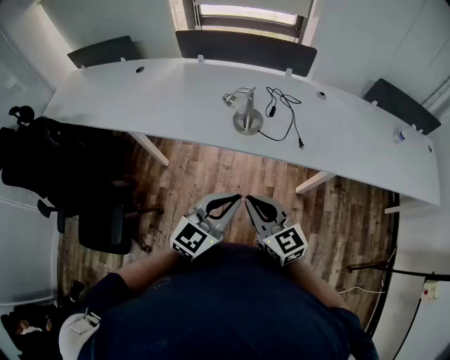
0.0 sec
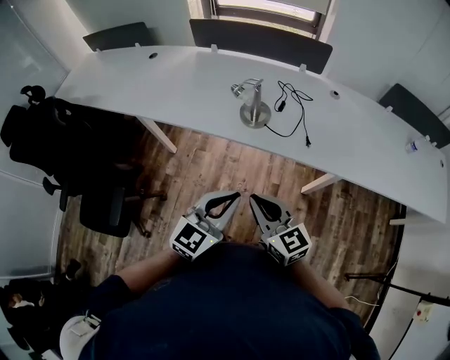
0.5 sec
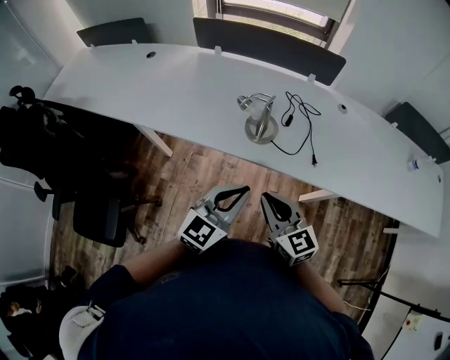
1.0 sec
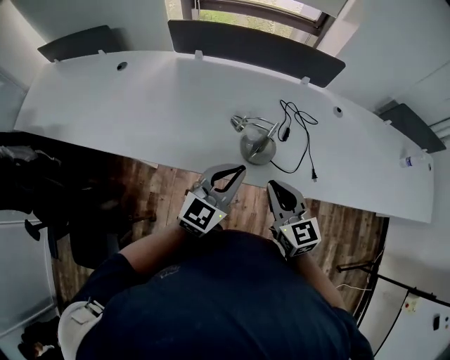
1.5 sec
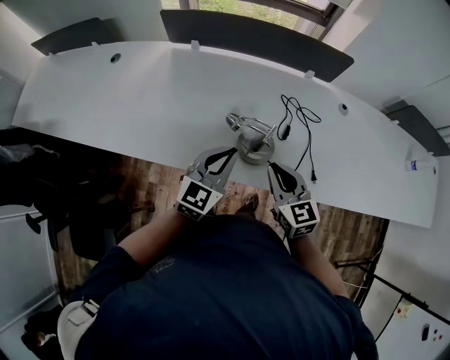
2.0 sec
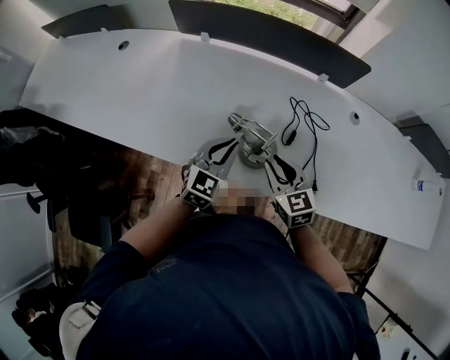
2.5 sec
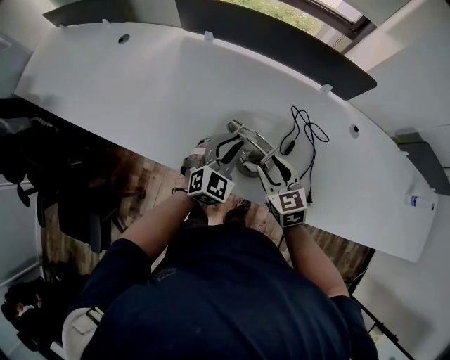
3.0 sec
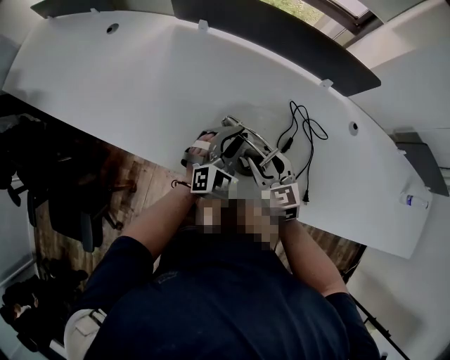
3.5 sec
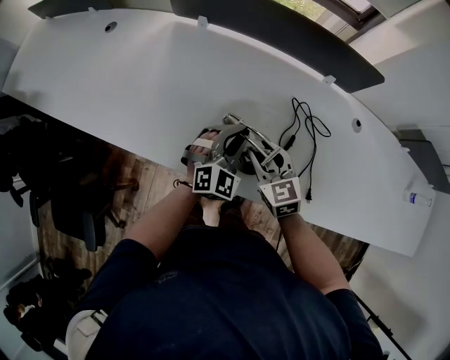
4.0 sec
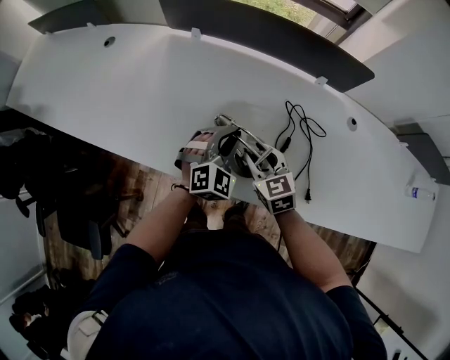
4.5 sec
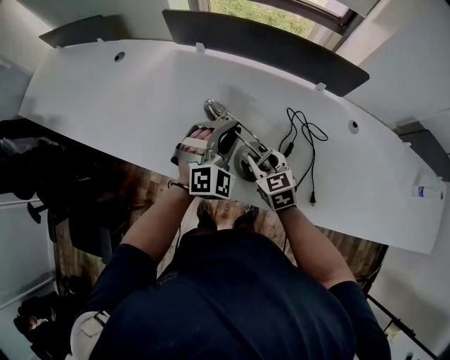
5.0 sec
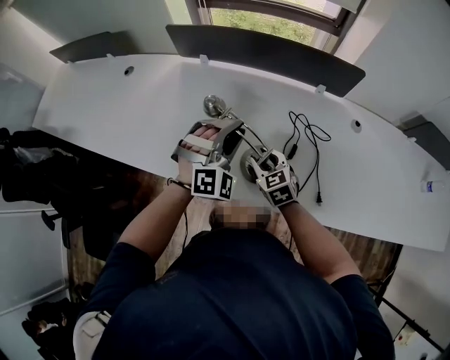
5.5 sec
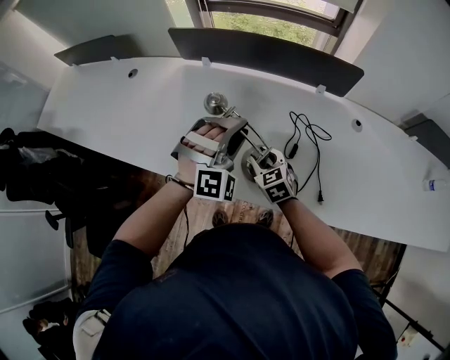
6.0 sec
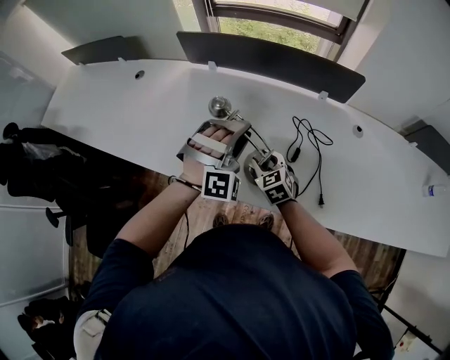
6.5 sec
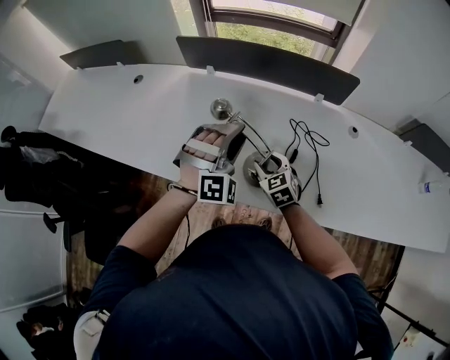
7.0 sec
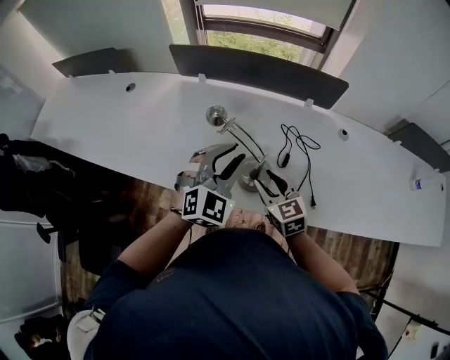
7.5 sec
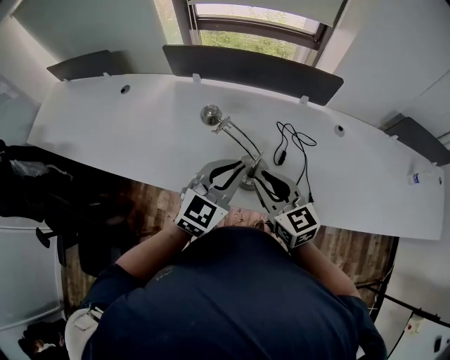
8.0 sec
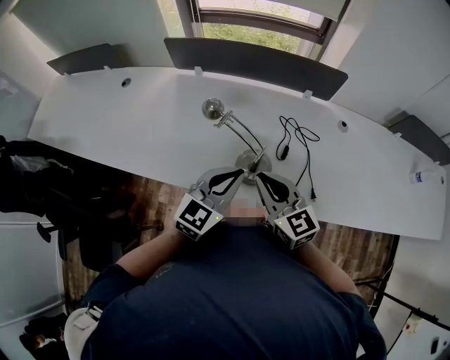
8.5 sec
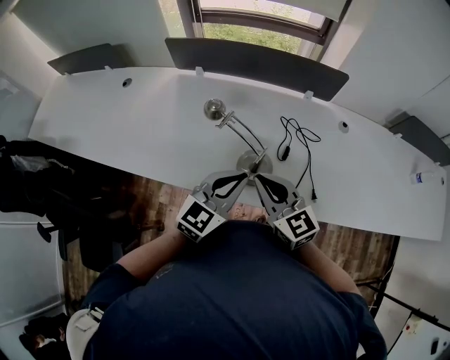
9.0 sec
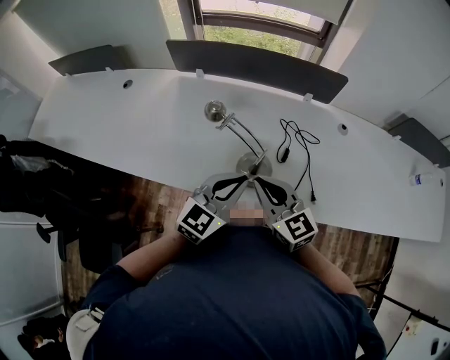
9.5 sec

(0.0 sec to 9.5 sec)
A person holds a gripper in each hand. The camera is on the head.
0.0 sec - 2.0 sec: Both grippers move forward, approximately 35 cm.
2.0 sec - 4.0 sec: Both grippers travel together forward and downward, some 15 cm. The right gripper opens its fingers; the left gripper rotates about 30 degrees.
4.0 sec - 5.5 sec: The left gripper heads upward, covering roughly 10 cm, and swivels approximately 30 degrees.
5.5 sec - 7.5 sec: The left gripper shifts roughly 10 cm backward and upward, and changes its angle by roughly 30 degrees, while the right gripper is displaced upward and backward by roughly 10 cm.
7.5 sec - 9.5 sec: The left gripper goes approximately 5 cm backward, rotates roughly 30 degrees, and closes; the right gripper heads upward, covering roughly 10 cm, and closes.

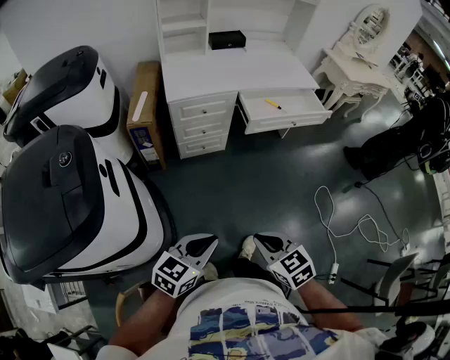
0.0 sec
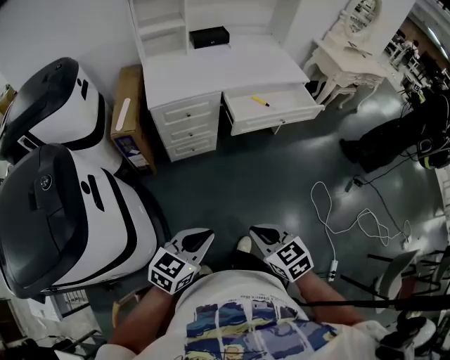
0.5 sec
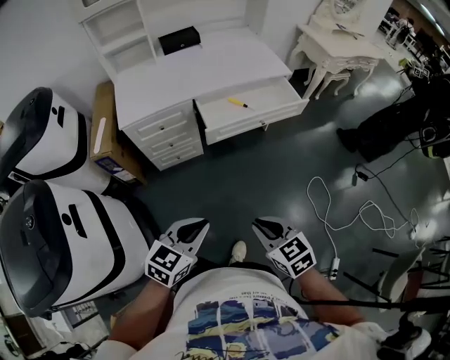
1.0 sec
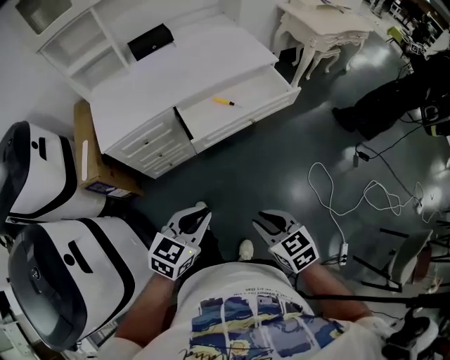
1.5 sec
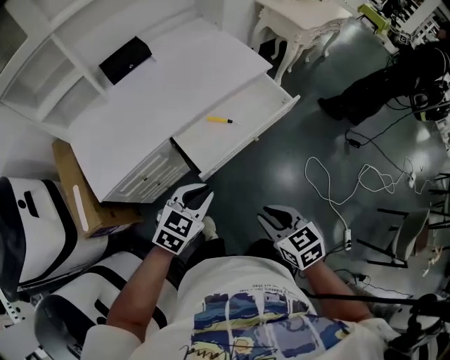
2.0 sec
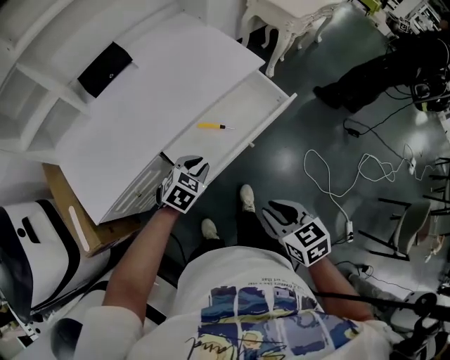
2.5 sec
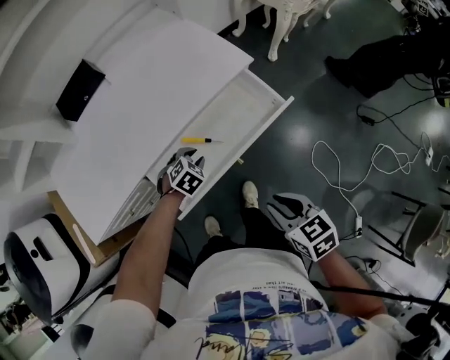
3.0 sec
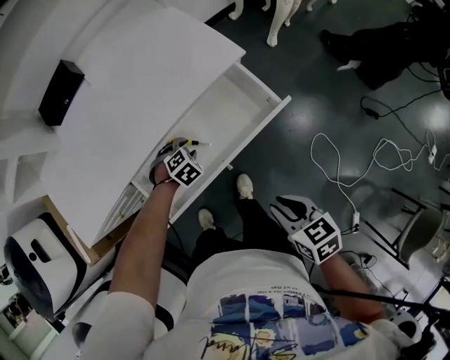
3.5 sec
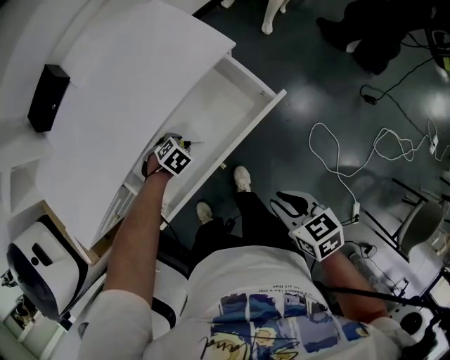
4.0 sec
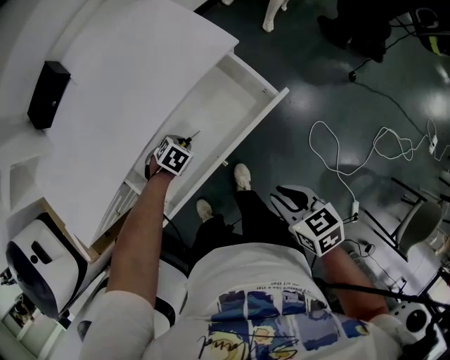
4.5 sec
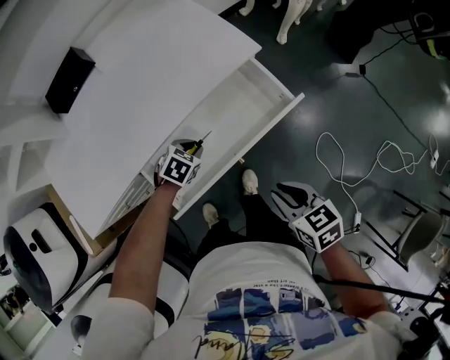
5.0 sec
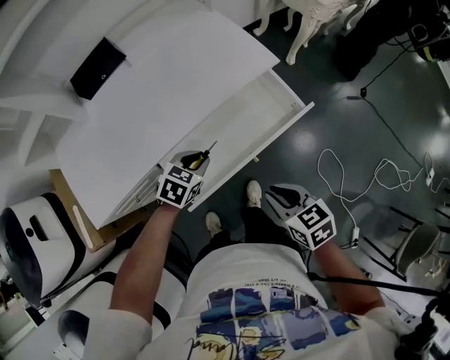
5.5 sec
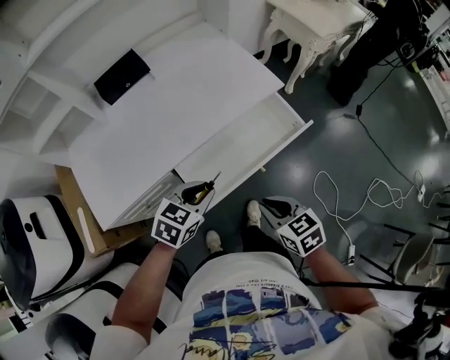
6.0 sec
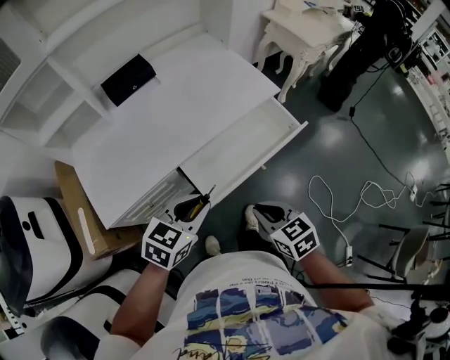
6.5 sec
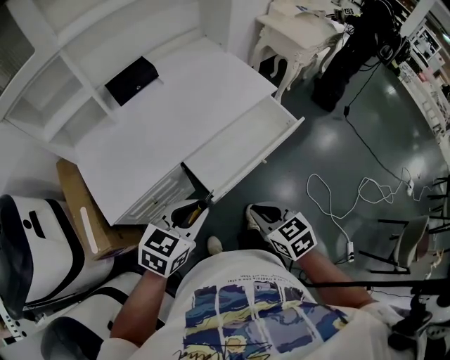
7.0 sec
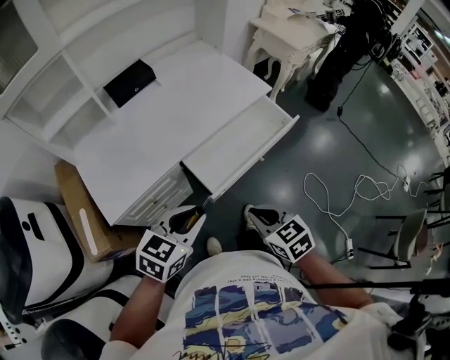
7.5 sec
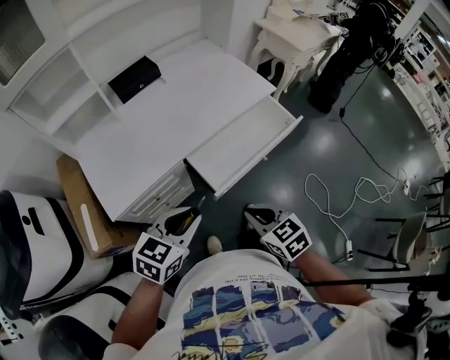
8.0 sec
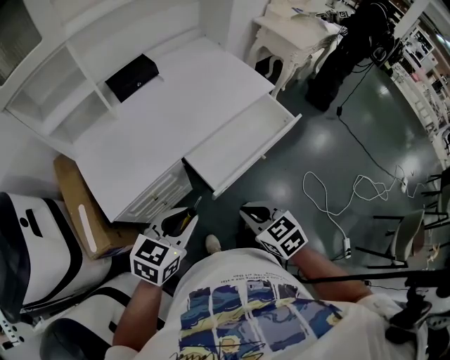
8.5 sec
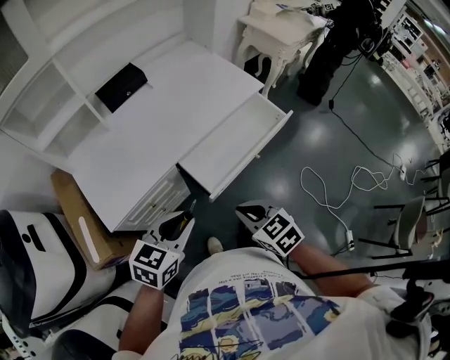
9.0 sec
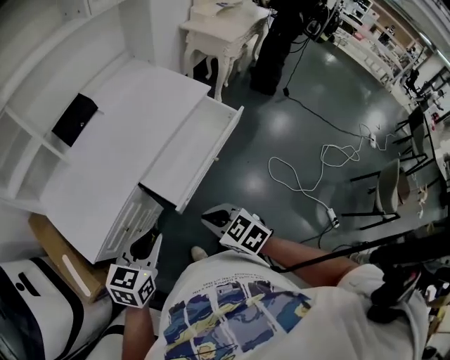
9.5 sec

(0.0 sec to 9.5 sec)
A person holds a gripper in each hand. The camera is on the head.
0.0 sec - 2.0 sec: The two grippers travel together, forward, approximately 50 cm. The left gripper rotates approximately 30 degrees. The right gripper changes its angle by some 30 degrees.
2.0 sec - 4.0 sec: The left gripper moves downward, some 30 cm, points its fingers approximately 50 degrees further downward, and opens its fingers. Meanwhile the right gripper changes place by about 30 cm.
4.0 sec - 5.5 sec: The left gripper moves upward, approximately 20 cm, and tilts its fingers about 30 degrees upward. The right gripper changes place by roughly 10 cm.
5.5 sec - 7.5 sec: The right gripper heads to the left, backward and upward, covering some 20 cm. Meanwhile the left gripper is displaced backward, upward and to the left by roughly 30 cm, and changes its angle by roughly 20 degrees.
7.5 sec - 9.5 sec: There are only small adjustments of the grippers.

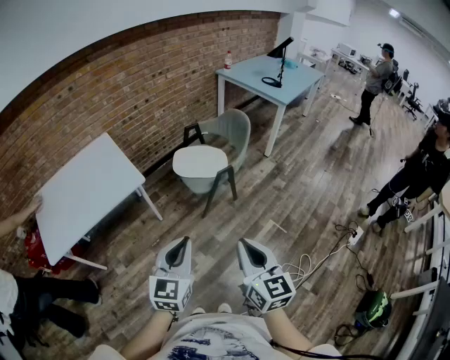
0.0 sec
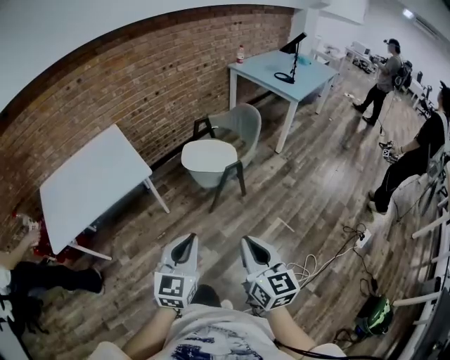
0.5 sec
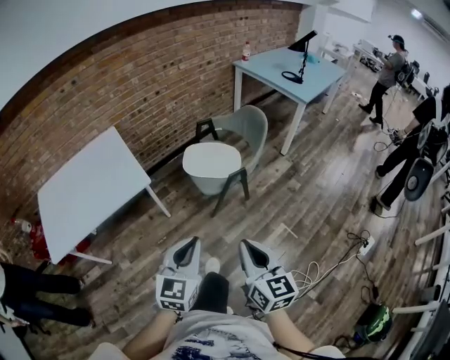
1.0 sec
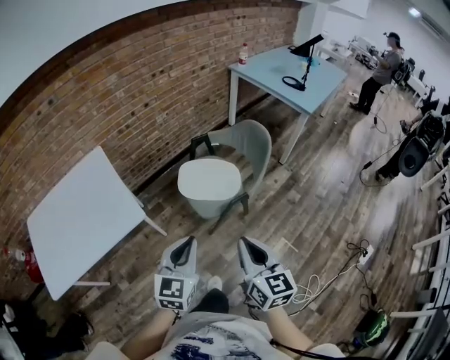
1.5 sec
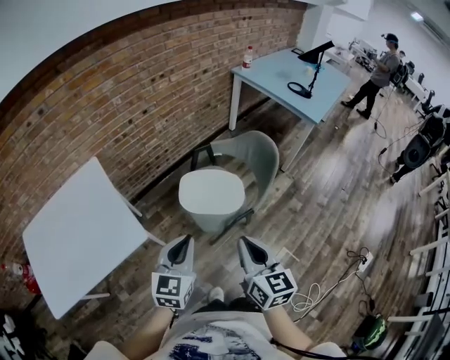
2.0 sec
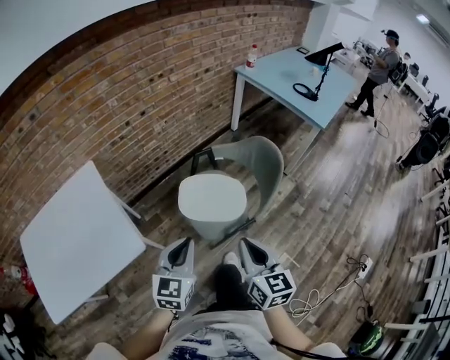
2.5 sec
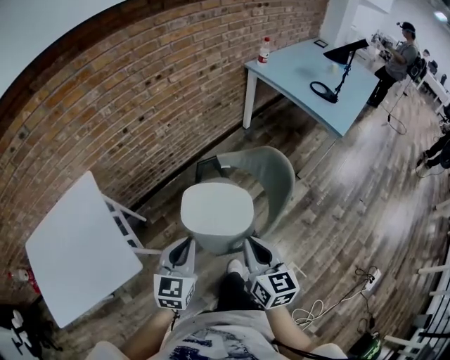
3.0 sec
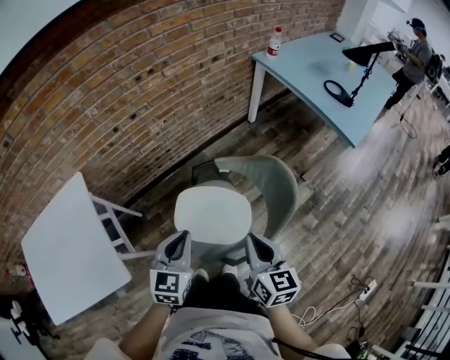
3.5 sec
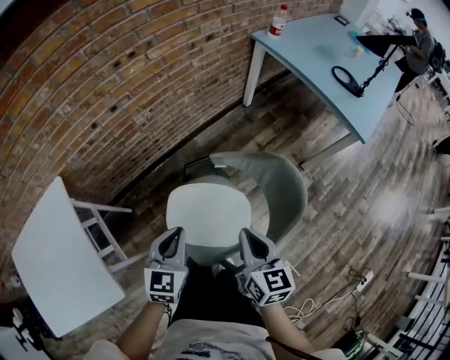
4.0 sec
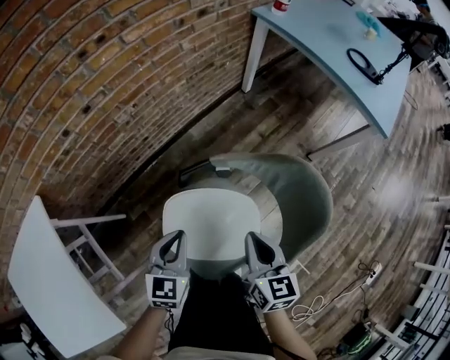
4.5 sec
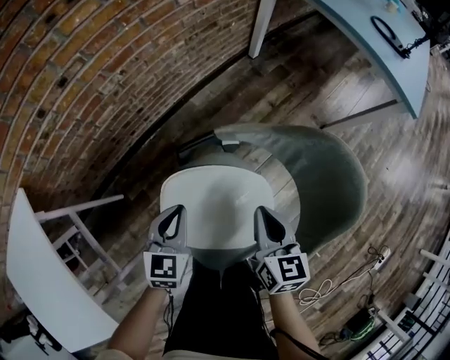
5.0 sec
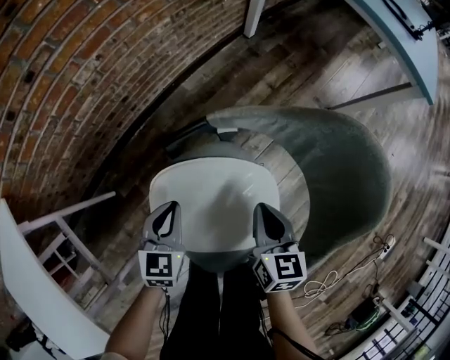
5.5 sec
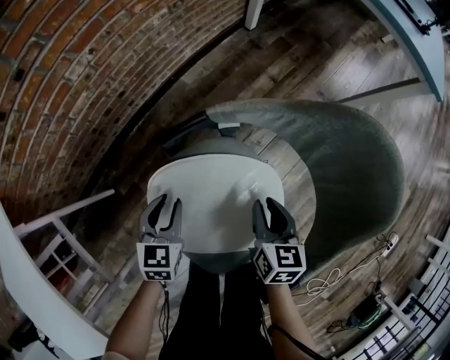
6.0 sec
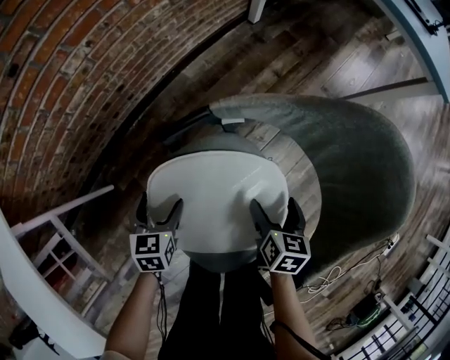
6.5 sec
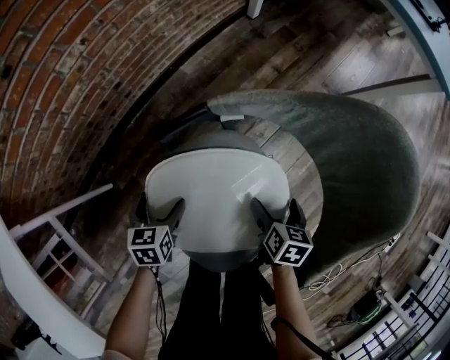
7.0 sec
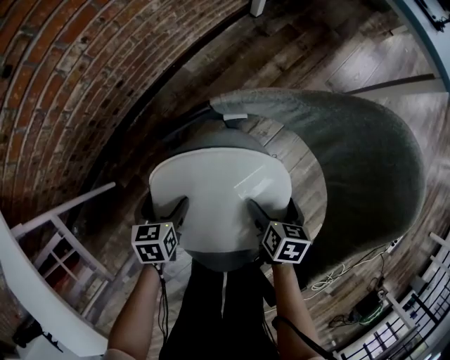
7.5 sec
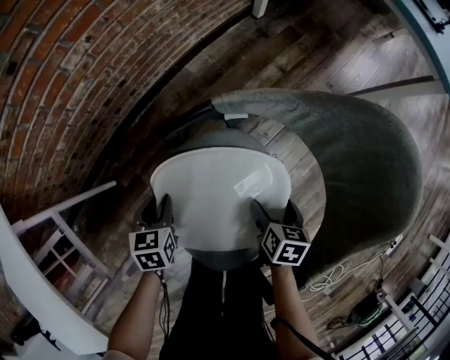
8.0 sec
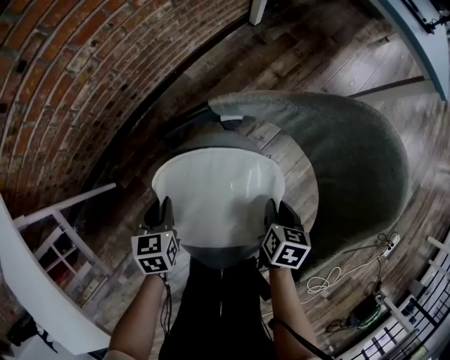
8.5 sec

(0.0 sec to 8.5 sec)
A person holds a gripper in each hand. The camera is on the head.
0.0 sec - 2.0 sec: Both grippers move forward, some 40 cm.
2.0 sec - 4.0 sec: The two grippers go about 40 cm forward and downward.
4.0 sec - 6.5 sec: The grippers both shift downward by some 40 cm. The left gripper rotates approximately 20 degrees, and opens, while the right gripper turns by about 30 degrees, and opens.
6.5 sec - 8.5 sec: The left gripper closes up. Meanwhile the right gripper closes up.
